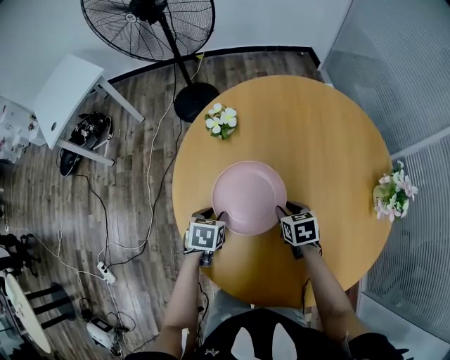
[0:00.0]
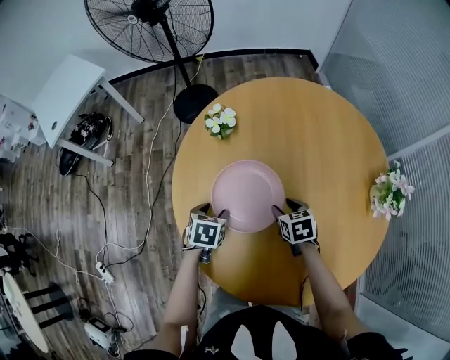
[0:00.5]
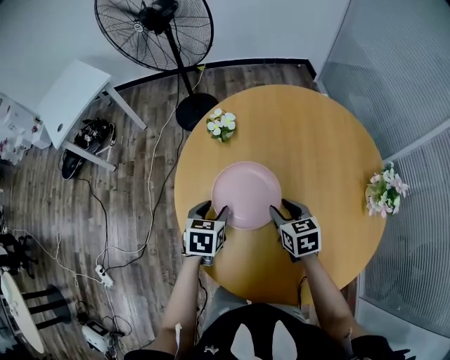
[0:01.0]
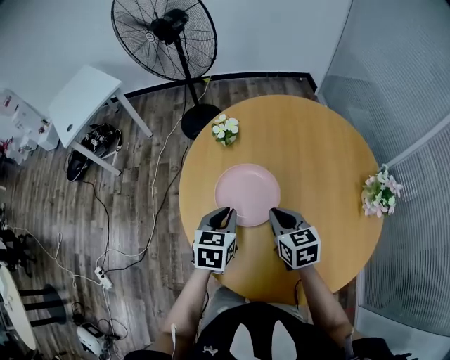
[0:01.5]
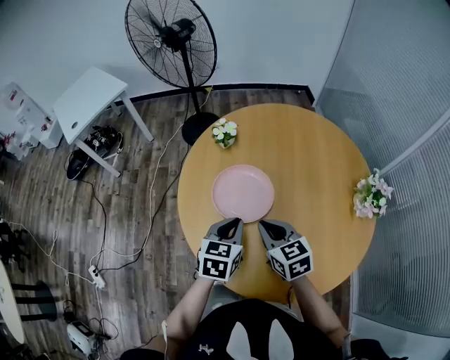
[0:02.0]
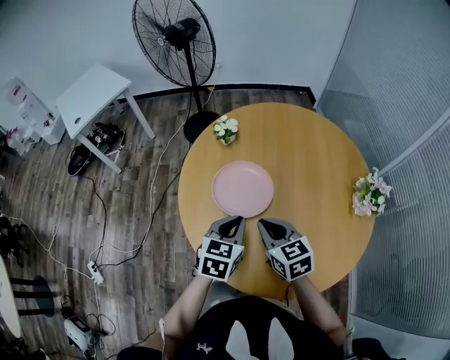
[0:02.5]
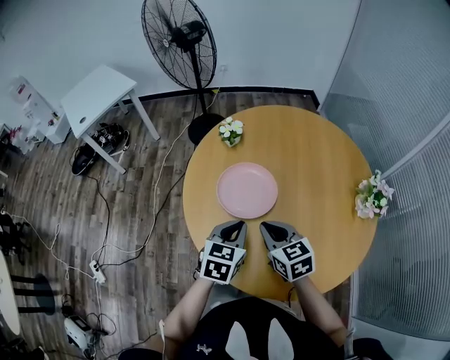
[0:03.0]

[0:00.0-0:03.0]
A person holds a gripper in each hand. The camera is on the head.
0:00.0 to 0:01.5: The grippers both shift upward by roughly 15 cm. The left gripper swivels some 20 degrees. The right gripper swivels approximately 20 degrees, and closes up.
0:01.5 to 0:03.0: Both grippers travel together backward, roughly 10 cm.

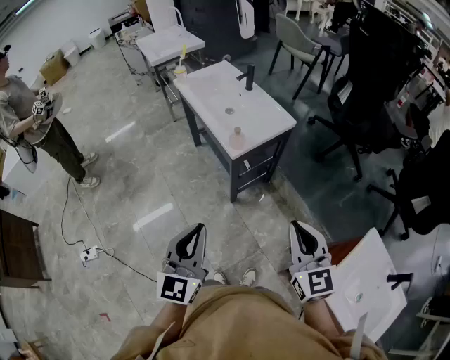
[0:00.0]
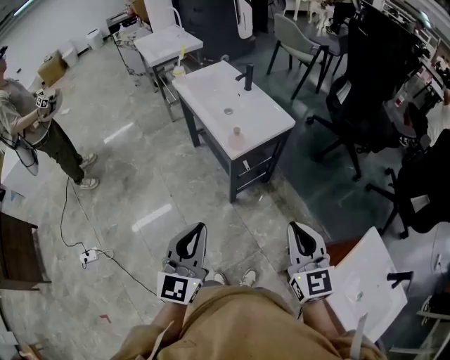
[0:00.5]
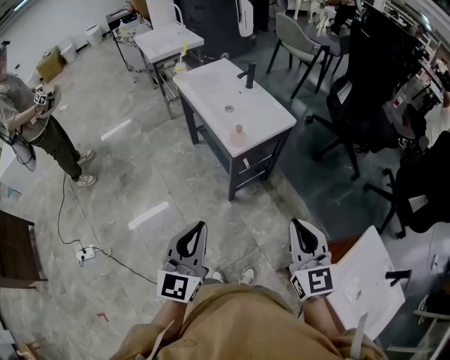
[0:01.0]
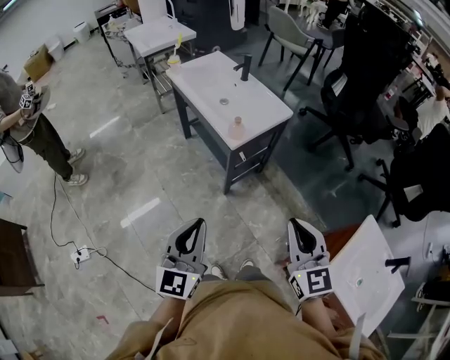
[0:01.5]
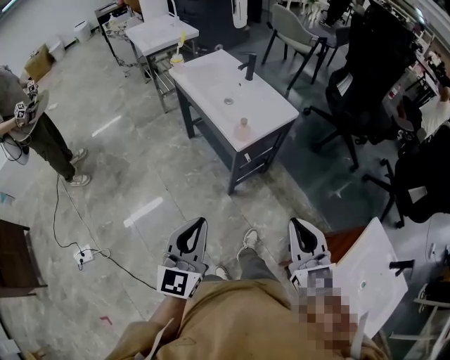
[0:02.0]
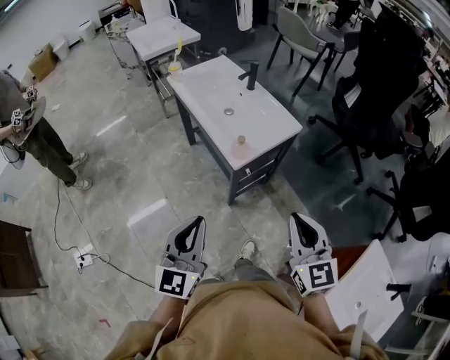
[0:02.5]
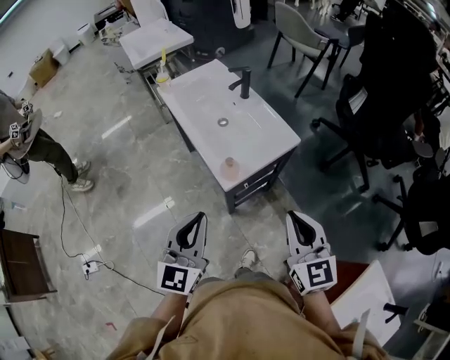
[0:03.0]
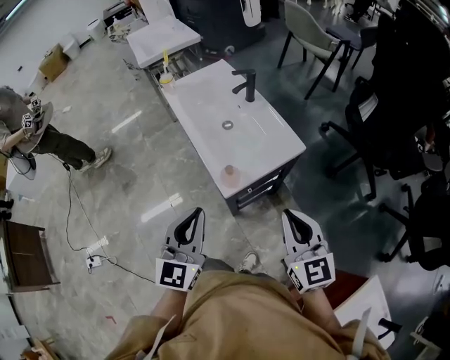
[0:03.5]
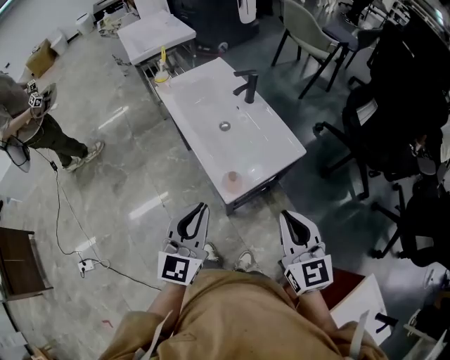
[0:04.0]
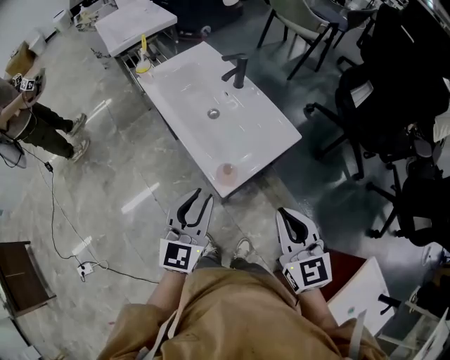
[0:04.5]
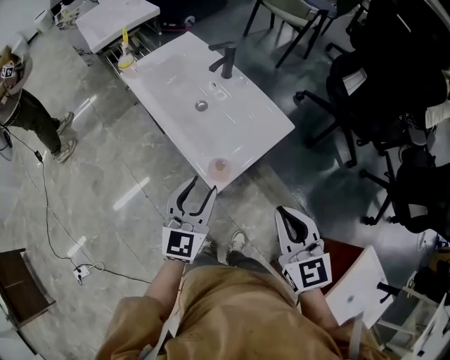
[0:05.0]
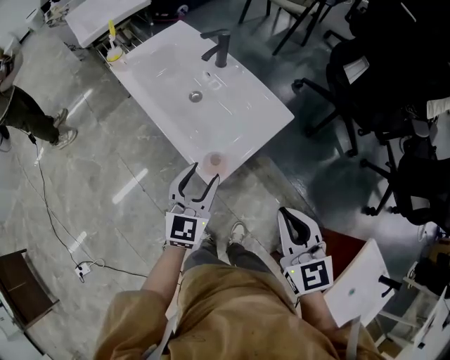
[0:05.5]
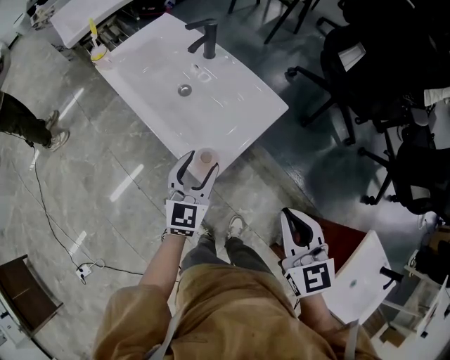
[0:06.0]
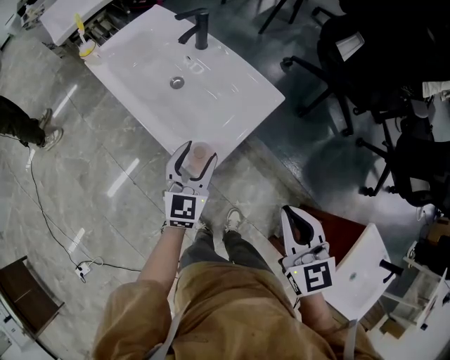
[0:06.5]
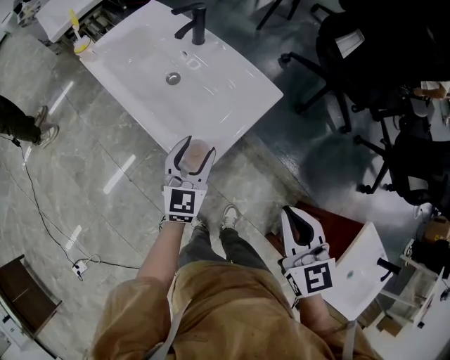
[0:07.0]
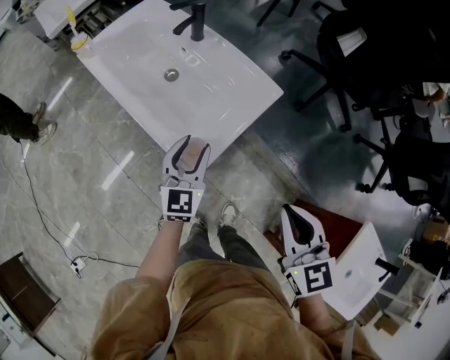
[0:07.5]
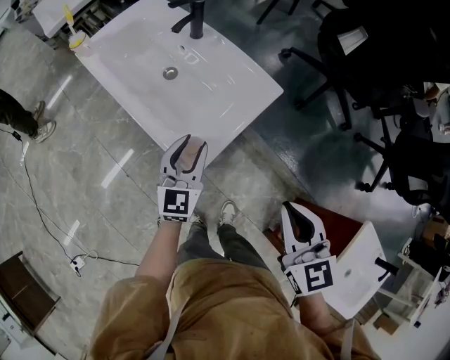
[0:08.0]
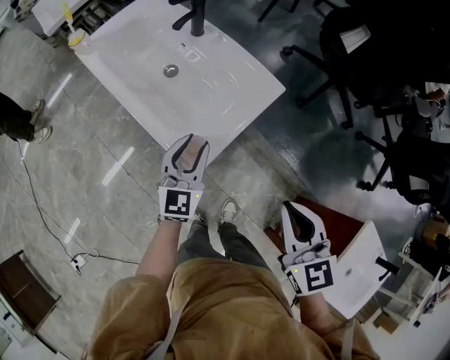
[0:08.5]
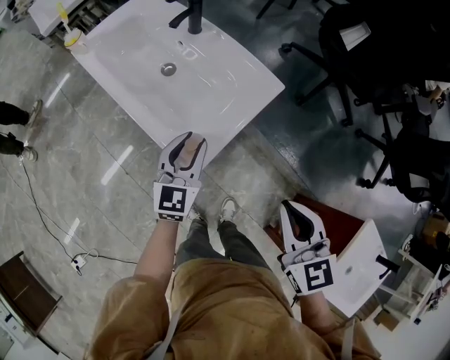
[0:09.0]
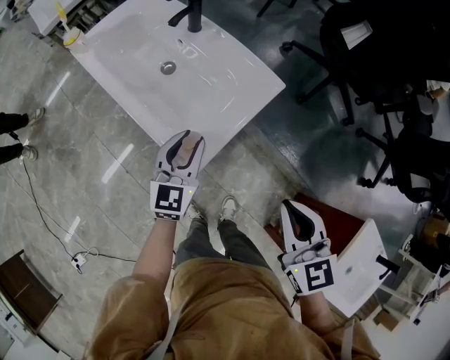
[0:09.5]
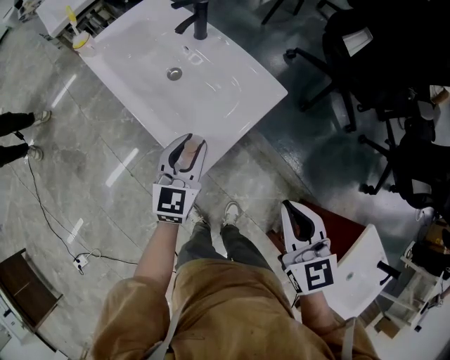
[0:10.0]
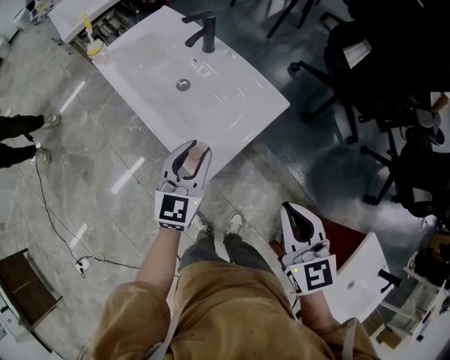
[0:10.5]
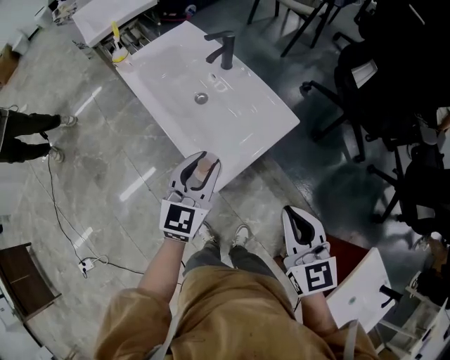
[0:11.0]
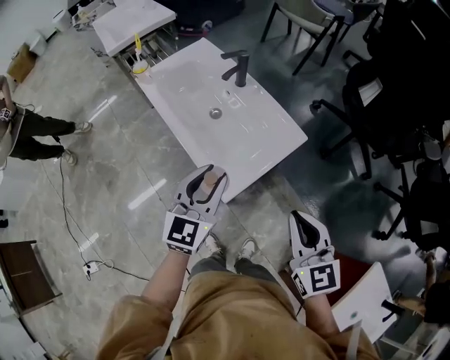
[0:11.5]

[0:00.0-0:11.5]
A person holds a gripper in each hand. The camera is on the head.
0:00.0 to 0:02.0: The grippers both shift to the left by some 5 cm.
0:02.0 to 0:04.0: The grippers both shift forward by roughly 30 cm.
0:04.0 to 0:06.0: The left gripper is displaced downward and forward by roughly 20 cm, and opens; the right gripper is displaced downward by about 5 cm.
0:06.0 to 0:09.5: The grippers make only small movements.
0:09.5 to 0:11.5: The left gripper is displaced upward by some 15 cm, while the right gripper travels upward by about 5 cm.

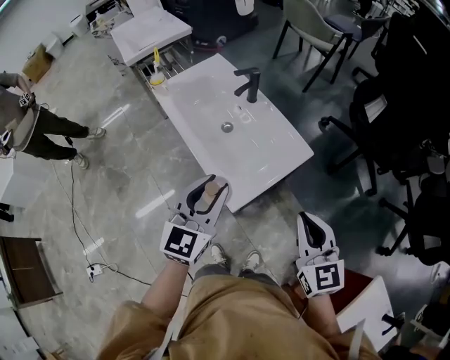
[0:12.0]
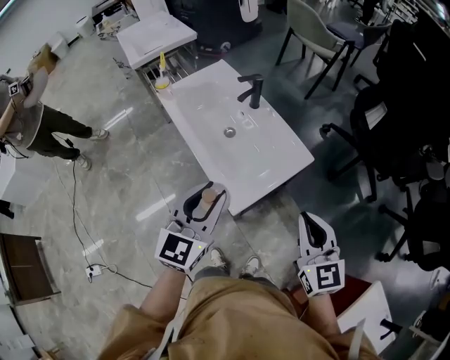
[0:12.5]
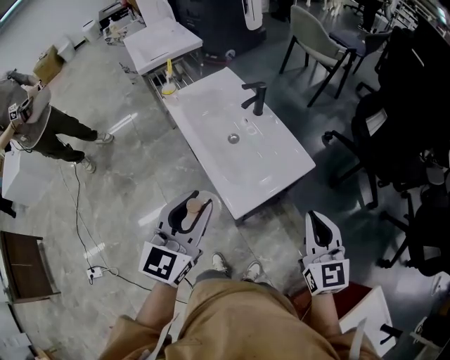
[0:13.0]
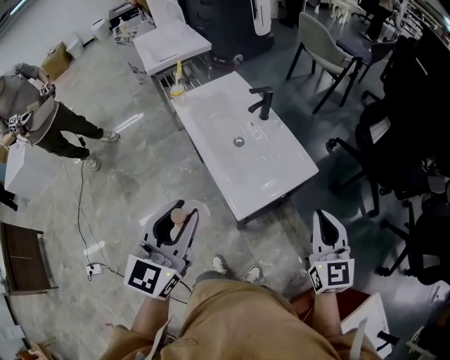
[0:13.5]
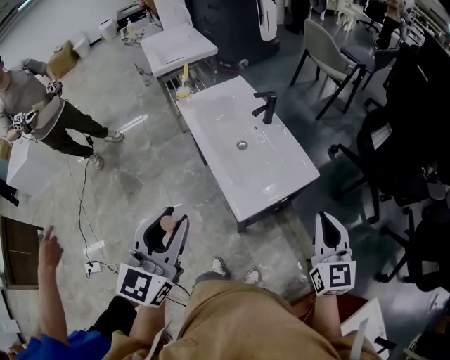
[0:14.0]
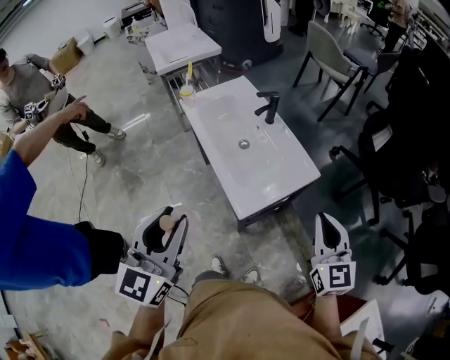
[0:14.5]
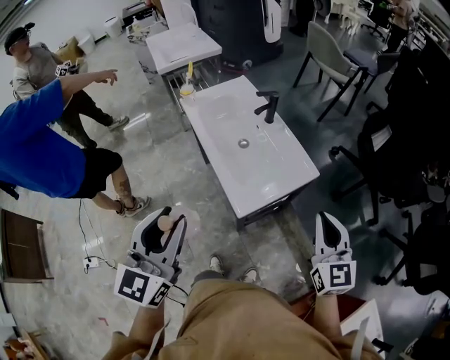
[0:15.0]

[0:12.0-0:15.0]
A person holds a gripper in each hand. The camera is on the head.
0:12.0 to 0:13.5: The left gripper travels upward, backward and to the left by roughly 15 cm.
0:13.5 to 0:15.0: The left gripper is displaced backward by approximately 5 cm.

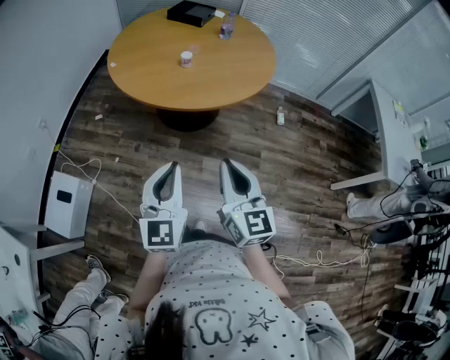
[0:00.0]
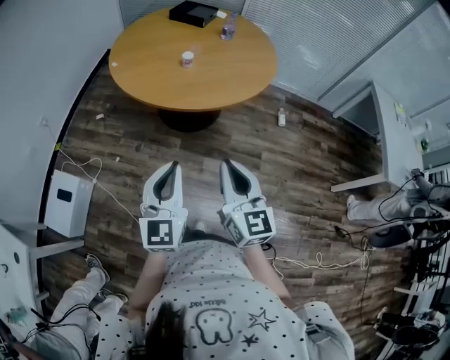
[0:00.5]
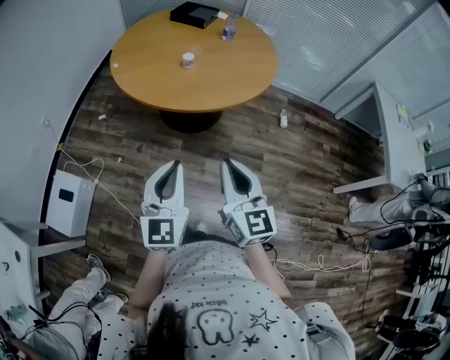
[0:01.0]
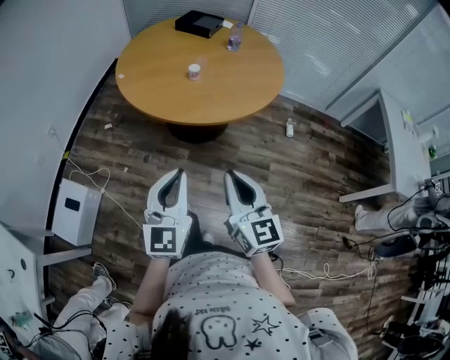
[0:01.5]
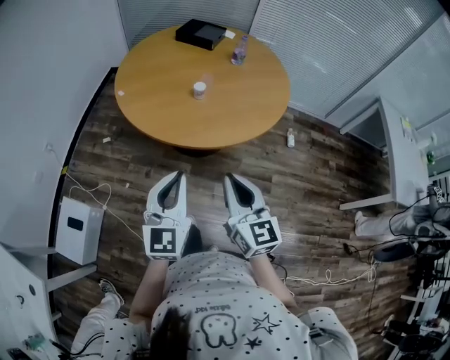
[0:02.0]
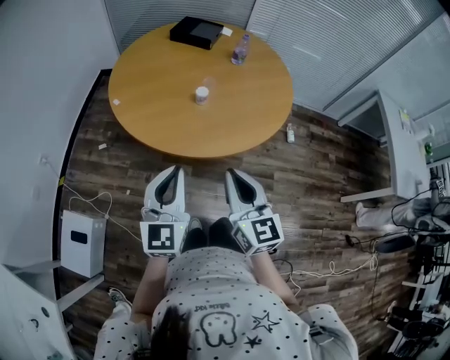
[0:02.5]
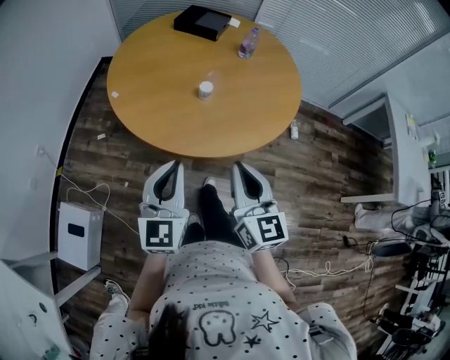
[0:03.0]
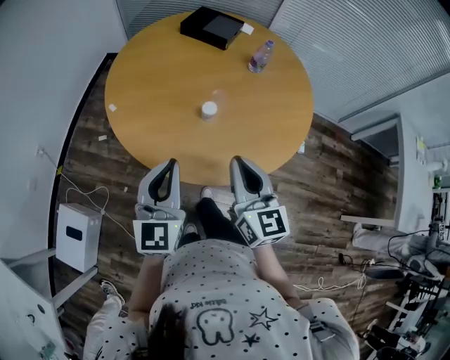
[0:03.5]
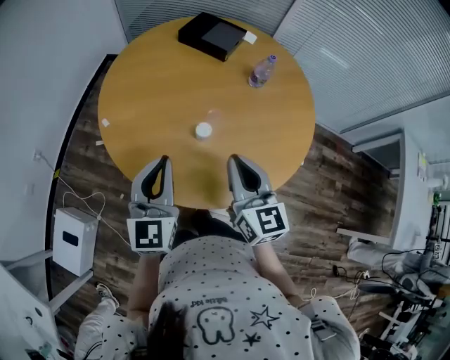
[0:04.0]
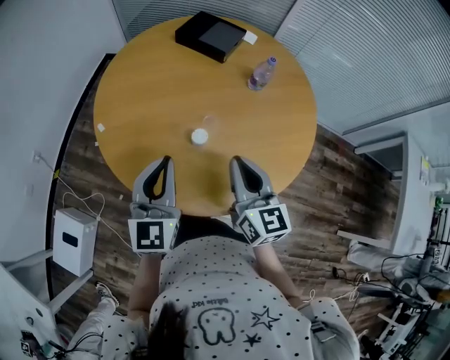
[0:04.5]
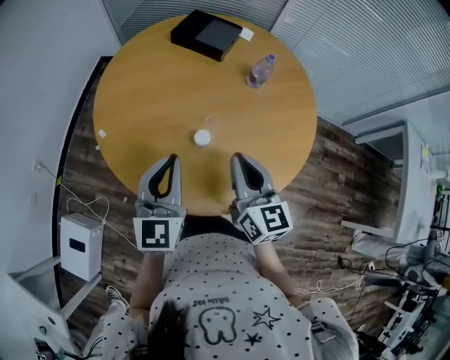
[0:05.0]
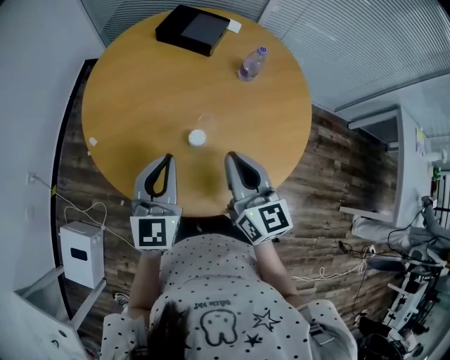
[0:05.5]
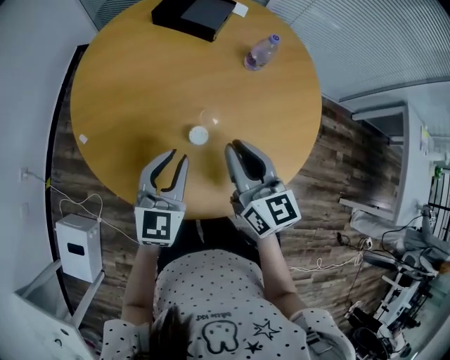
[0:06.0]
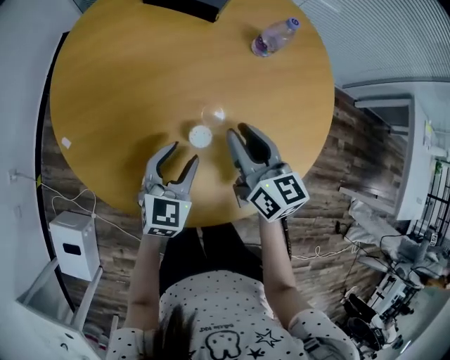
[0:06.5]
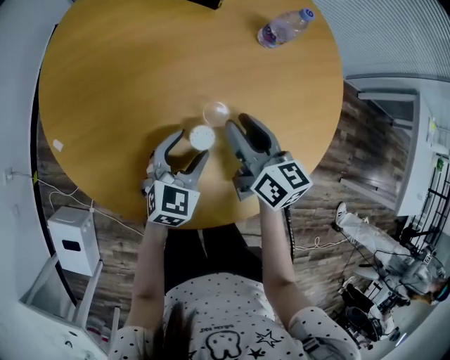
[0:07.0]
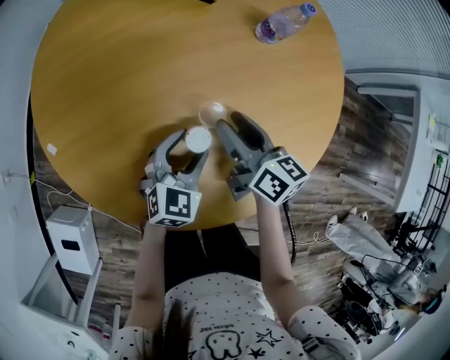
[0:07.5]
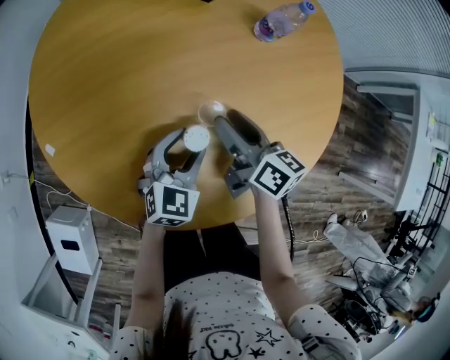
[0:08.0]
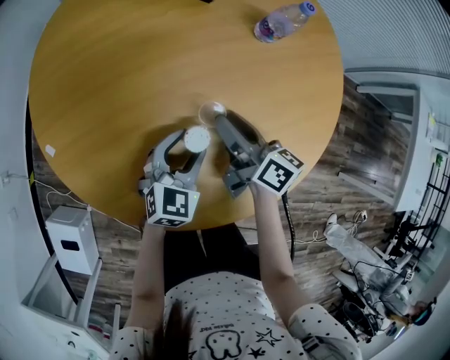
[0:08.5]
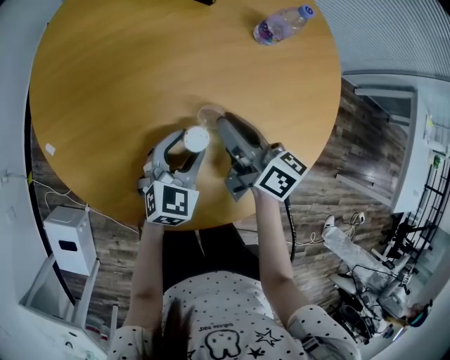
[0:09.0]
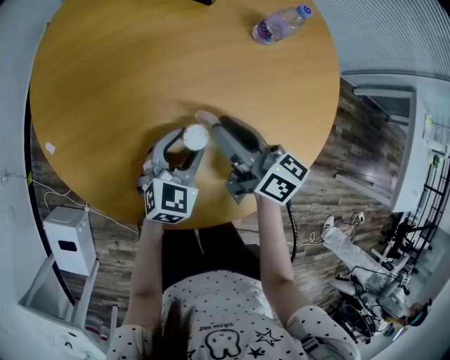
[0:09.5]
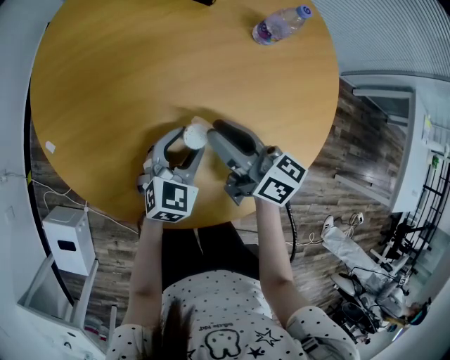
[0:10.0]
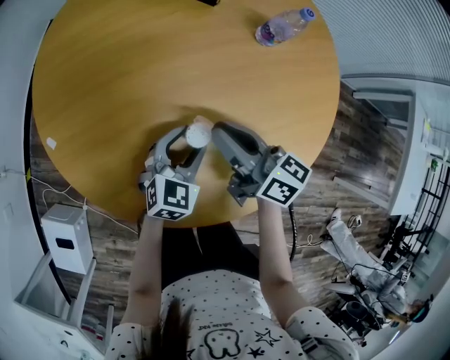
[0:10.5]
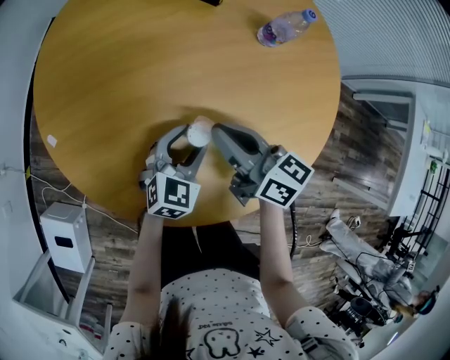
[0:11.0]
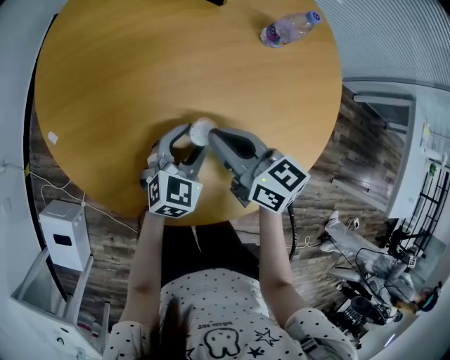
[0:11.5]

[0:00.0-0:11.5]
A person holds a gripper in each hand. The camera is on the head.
0:00.0 to 0:02.0: Both grippers move forward, about 15 cm.
0:02.0 to 0:04.0: Both grippers move forward, about 35 cm.
0:04.0 to 0:06.0: The right gripper heads forward and downward, covering roughly 10 cm. The left gripper is displaced downward and forward by approximately 15 cm, and changes its angle by about 20 degrees.
0:06.0 to 0:07.5: The left gripper shifts approximately 20 cm downward, changes its angle by some 20 degrees, and opens up. Meanwhile the right gripper moves downward and forward, approximately 20 cm, changes its angle by some 30 degrees, and opens.
0:07.5 to 0:09.5: The right gripper closes its fingers.
0:09.5 to 0:11.5: The right gripper swivels roughly 20 degrees, and closes its fingers.
